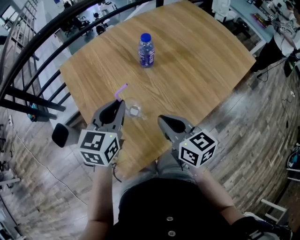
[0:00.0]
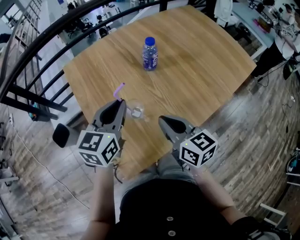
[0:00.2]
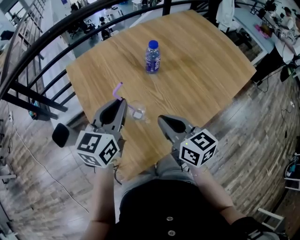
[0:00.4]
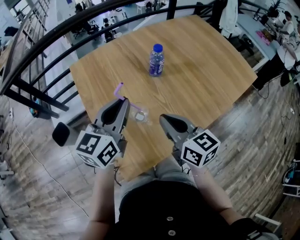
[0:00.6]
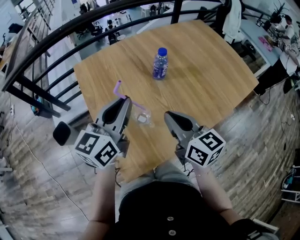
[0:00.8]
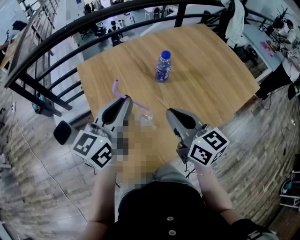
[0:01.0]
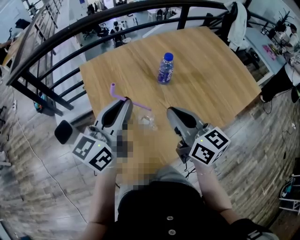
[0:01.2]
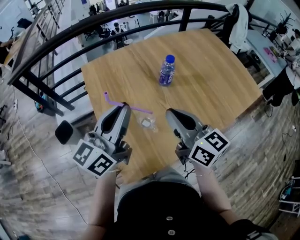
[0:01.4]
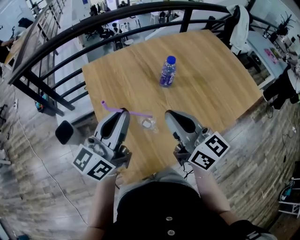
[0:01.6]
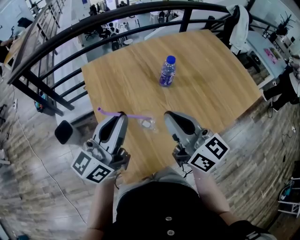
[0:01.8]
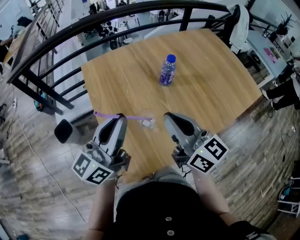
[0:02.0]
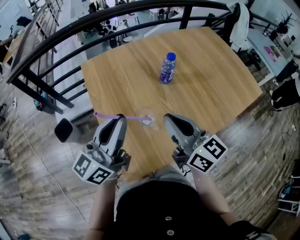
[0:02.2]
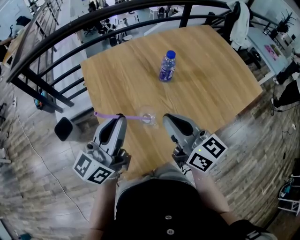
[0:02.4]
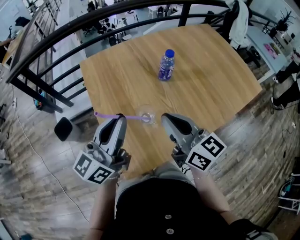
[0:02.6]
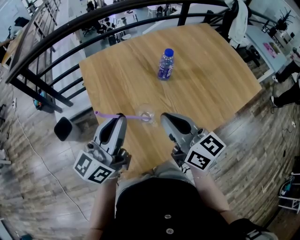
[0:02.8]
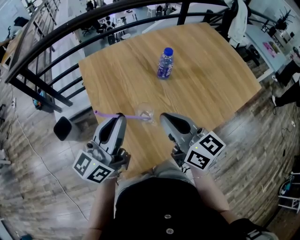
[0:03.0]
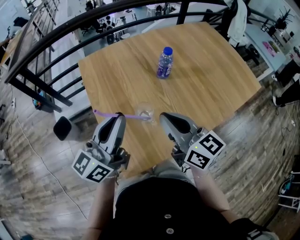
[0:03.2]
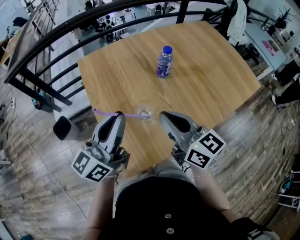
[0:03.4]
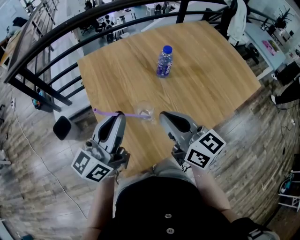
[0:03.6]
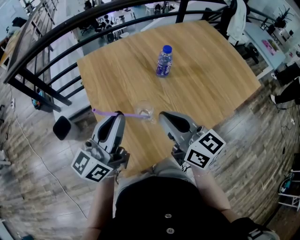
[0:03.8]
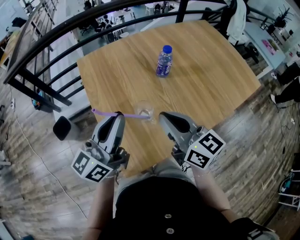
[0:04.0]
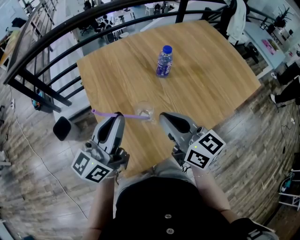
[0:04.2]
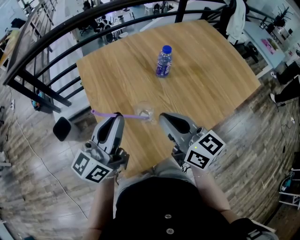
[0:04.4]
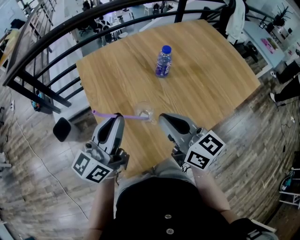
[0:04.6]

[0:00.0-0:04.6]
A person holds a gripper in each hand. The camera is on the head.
0:00.0 to 0:01.6: The left gripper goes some 15 cm upward, to the left and backward, and angles its fingers upward, by roughly 30 degrees; the right gripper moves upward, roughly 10 cm, and swivels approximately 20 degrees.
0:01.6 to 0:03.0: There are only small adjustments of the grippers.
0:03.0 to 0:04.6: Neither gripper changes place.

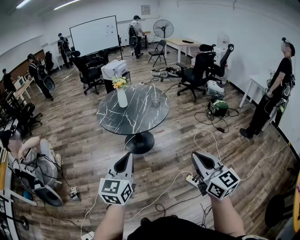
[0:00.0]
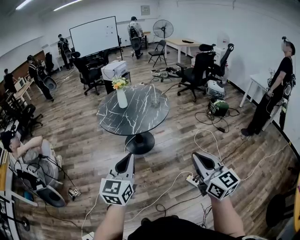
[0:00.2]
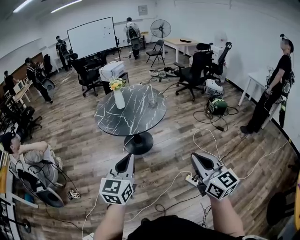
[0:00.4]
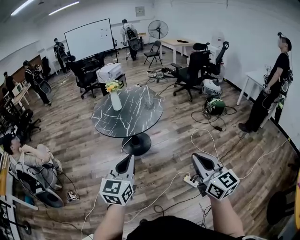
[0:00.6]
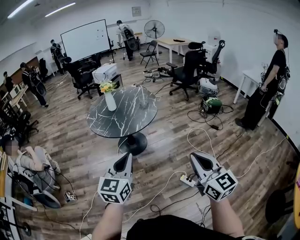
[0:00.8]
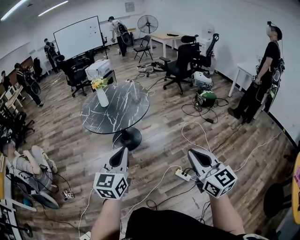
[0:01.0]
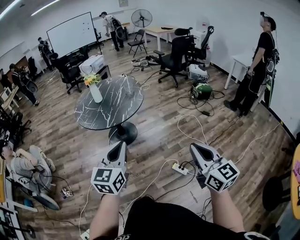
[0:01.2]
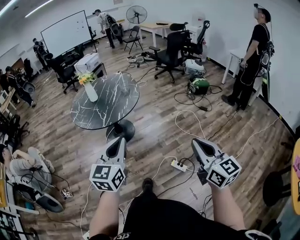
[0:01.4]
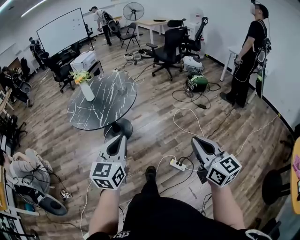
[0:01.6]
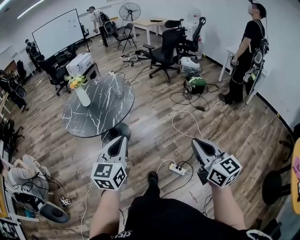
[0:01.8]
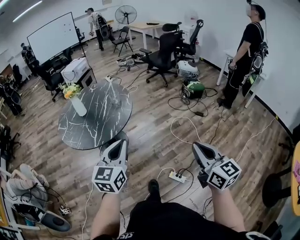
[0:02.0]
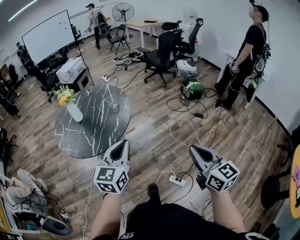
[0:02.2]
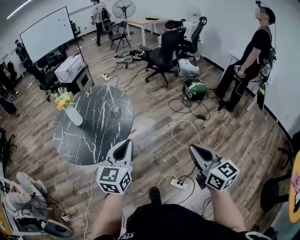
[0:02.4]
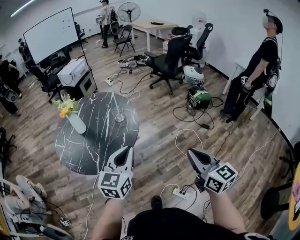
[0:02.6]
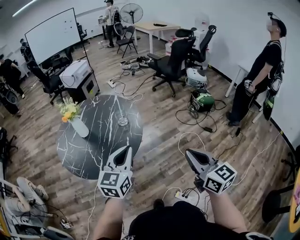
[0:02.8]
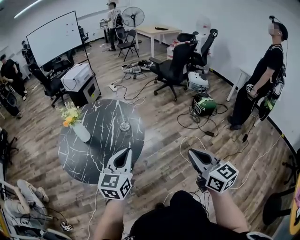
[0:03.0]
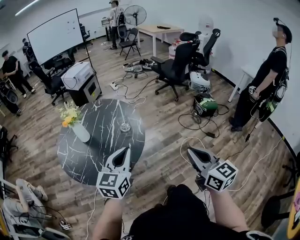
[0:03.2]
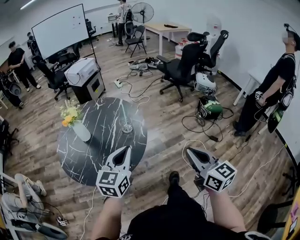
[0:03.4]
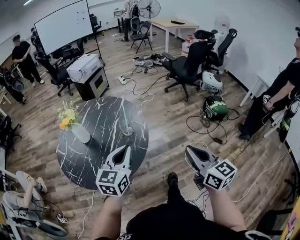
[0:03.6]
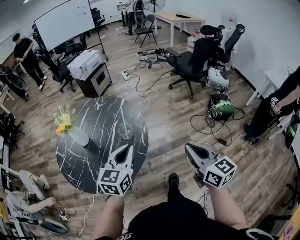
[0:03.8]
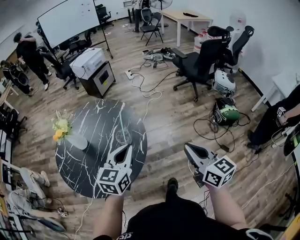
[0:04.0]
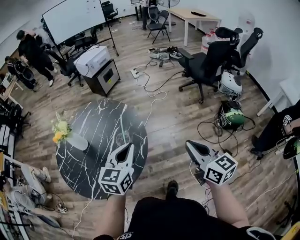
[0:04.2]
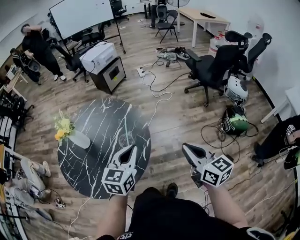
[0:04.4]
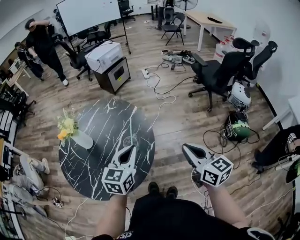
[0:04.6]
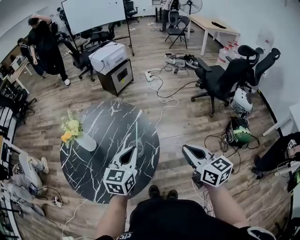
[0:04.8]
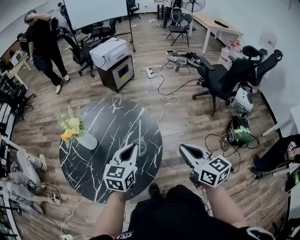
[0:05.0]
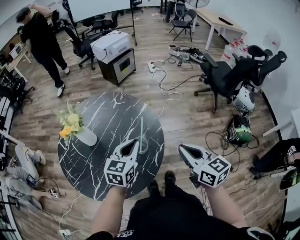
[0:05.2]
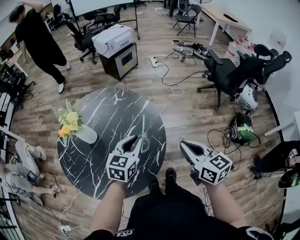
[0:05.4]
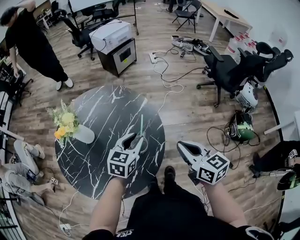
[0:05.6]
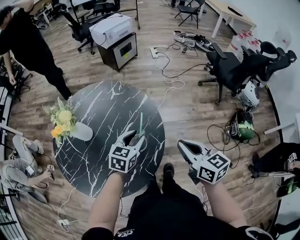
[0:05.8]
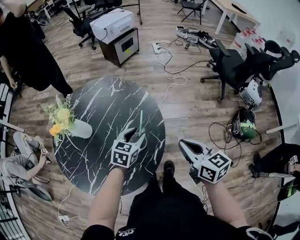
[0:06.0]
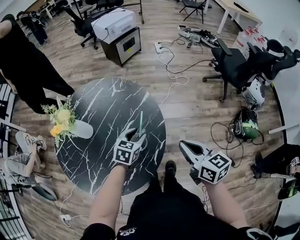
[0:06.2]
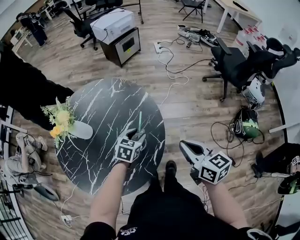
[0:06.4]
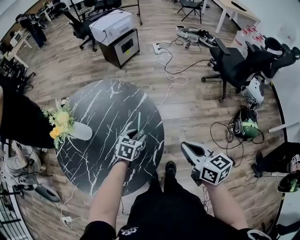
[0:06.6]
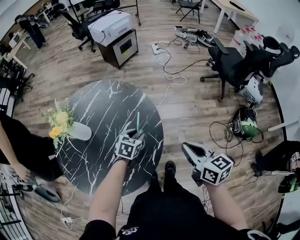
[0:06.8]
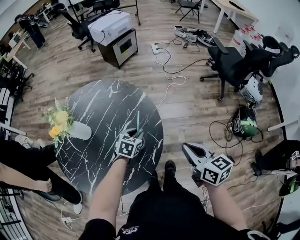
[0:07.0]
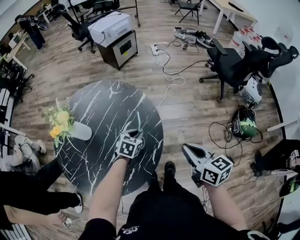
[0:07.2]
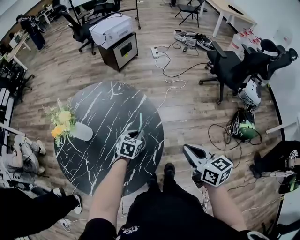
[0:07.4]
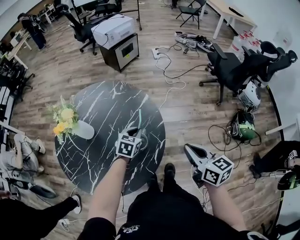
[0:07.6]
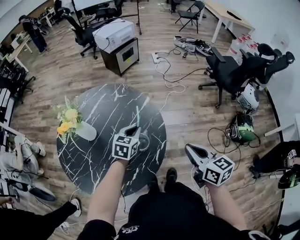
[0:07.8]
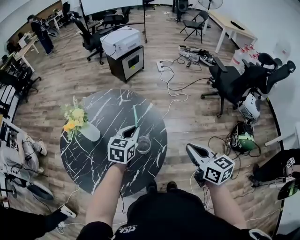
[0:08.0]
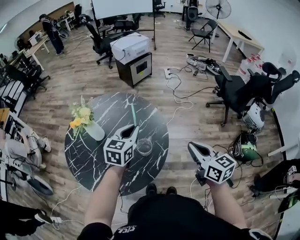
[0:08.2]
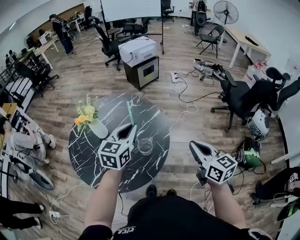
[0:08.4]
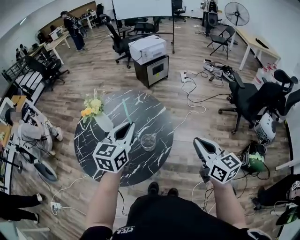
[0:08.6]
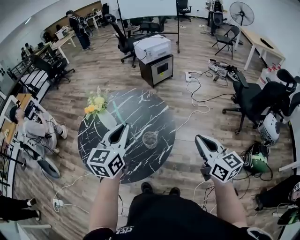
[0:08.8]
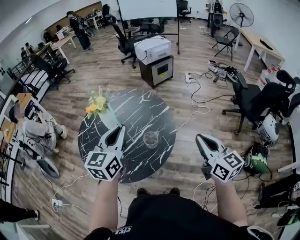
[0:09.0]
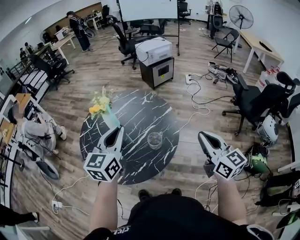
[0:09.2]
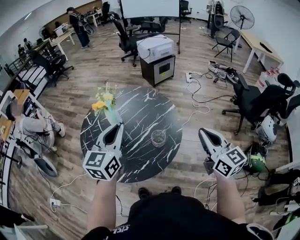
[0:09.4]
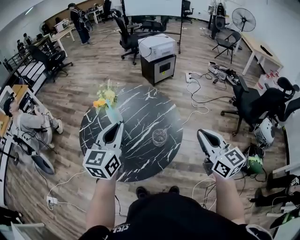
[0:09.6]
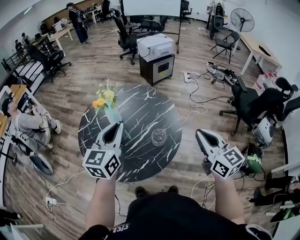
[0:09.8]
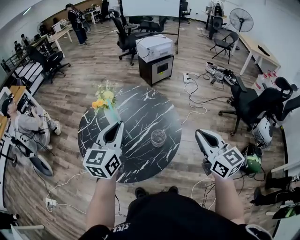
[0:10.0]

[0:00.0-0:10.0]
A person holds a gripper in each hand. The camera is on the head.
0:00.0 to 0:01.4: The two grippers go about 20 cm to the right.
0:01.4 to 0:02.8: The pair of grippers is taken forward, approximately 40 cm.
0:02.8 to 0:04.2: Both grippers travel together forward, roughly 35 cm.
0:04.2 to 0:05.8: The right gripper goes roughly 25 cm forward, to the left and downward; the left gripper travels forward, downward and to the left by about 25 cm, and opens up.
0:05.8 to 0:07.2: The left gripper travels downward by approximately 10 cm, and closes.
0:07.2 to 0:08.6: The left gripper is displaced upward by some 30 cm, and angles its fingers upward, by roughly 40 degrees, while the right gripper goes about 10 cm upward, and turns by about 20 degrees.
0:08.6 to 0:10.0: The left gripper is displaced to the left by some 10 cm. The right gripper goes approximately 10 cm to the left.

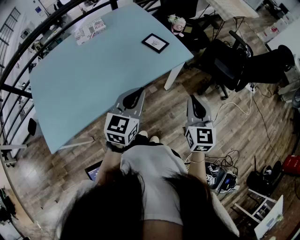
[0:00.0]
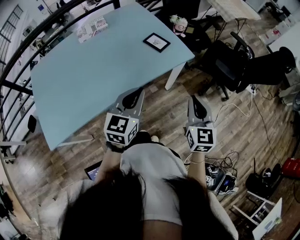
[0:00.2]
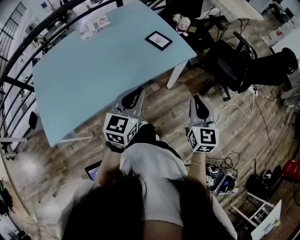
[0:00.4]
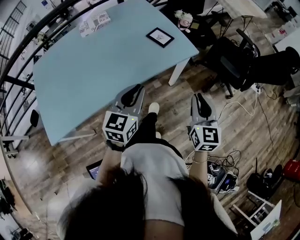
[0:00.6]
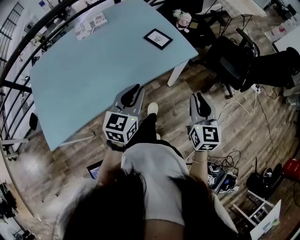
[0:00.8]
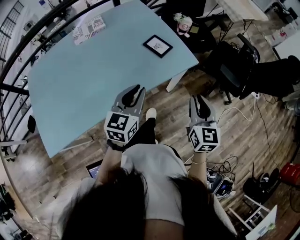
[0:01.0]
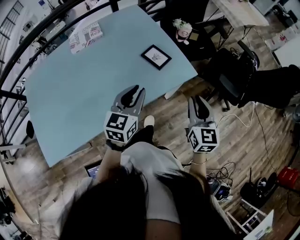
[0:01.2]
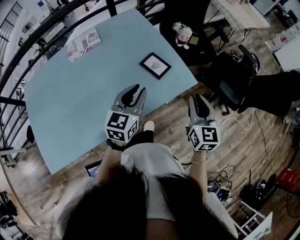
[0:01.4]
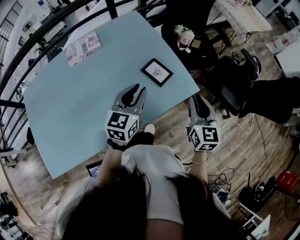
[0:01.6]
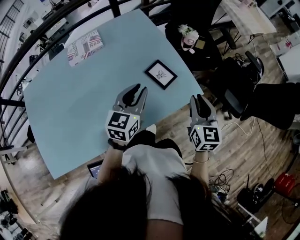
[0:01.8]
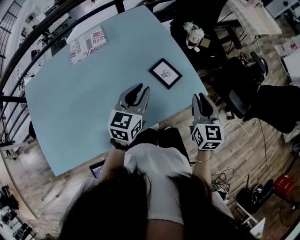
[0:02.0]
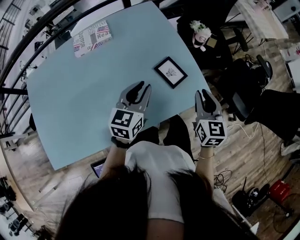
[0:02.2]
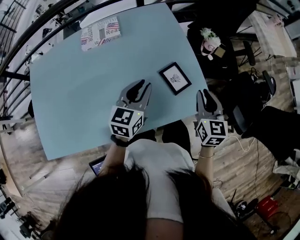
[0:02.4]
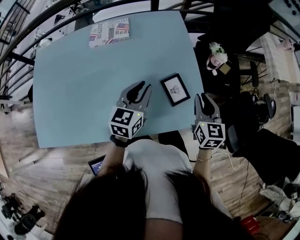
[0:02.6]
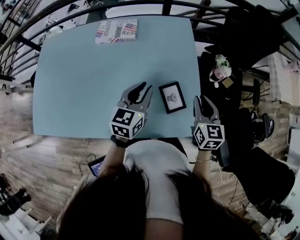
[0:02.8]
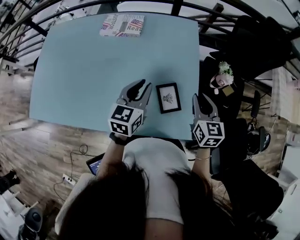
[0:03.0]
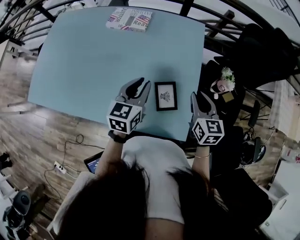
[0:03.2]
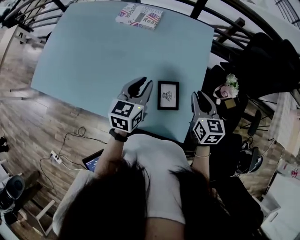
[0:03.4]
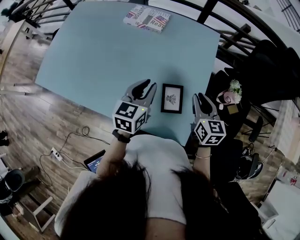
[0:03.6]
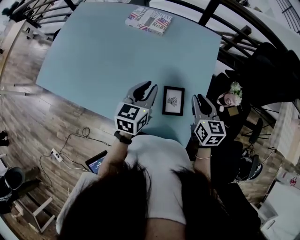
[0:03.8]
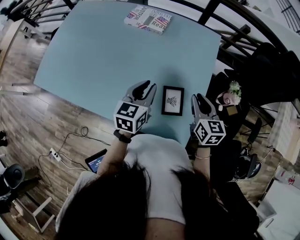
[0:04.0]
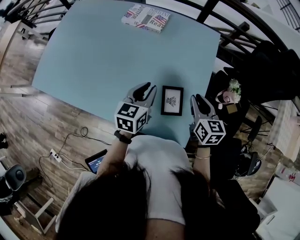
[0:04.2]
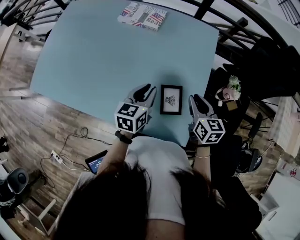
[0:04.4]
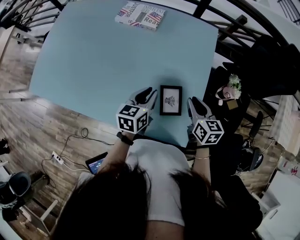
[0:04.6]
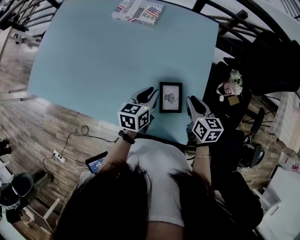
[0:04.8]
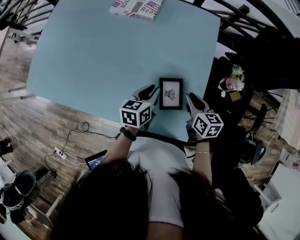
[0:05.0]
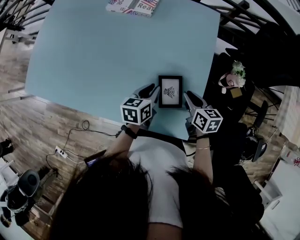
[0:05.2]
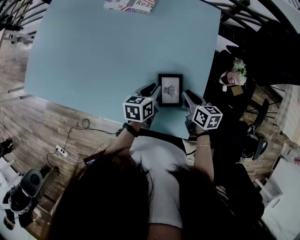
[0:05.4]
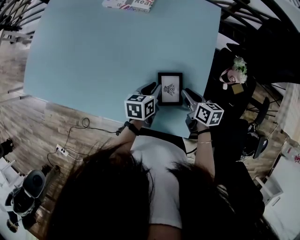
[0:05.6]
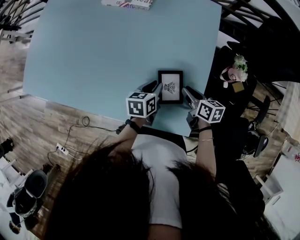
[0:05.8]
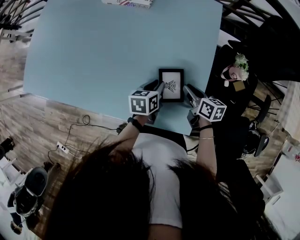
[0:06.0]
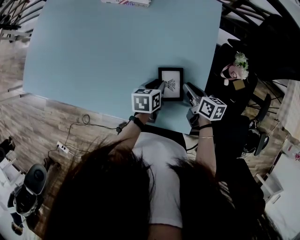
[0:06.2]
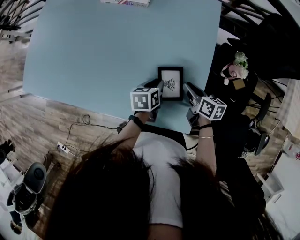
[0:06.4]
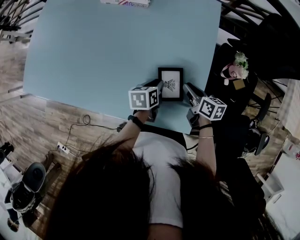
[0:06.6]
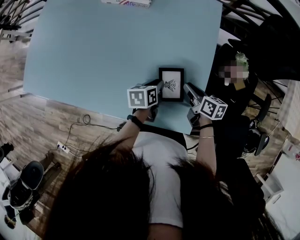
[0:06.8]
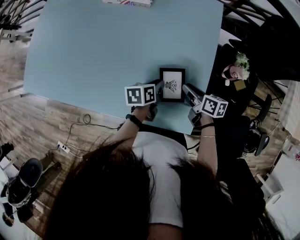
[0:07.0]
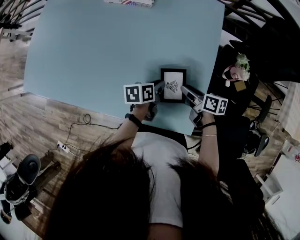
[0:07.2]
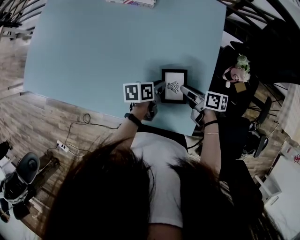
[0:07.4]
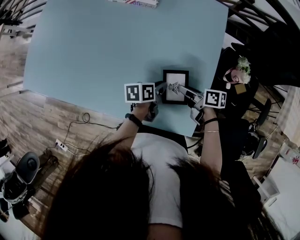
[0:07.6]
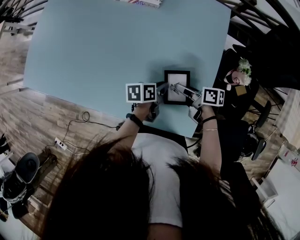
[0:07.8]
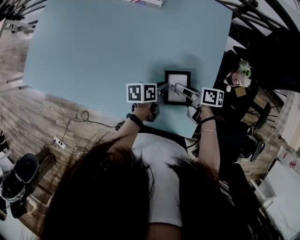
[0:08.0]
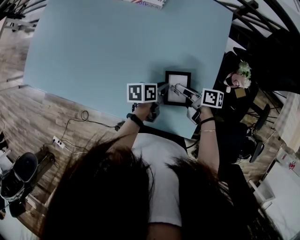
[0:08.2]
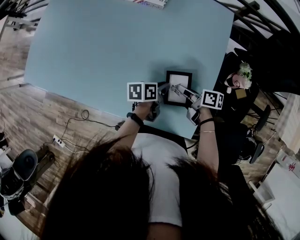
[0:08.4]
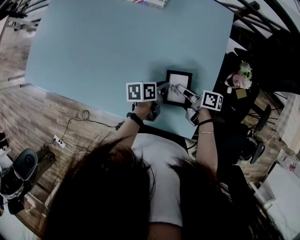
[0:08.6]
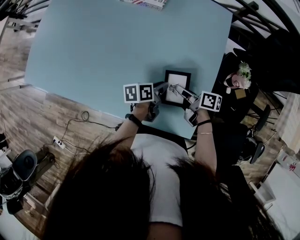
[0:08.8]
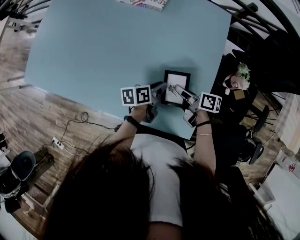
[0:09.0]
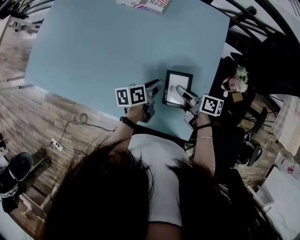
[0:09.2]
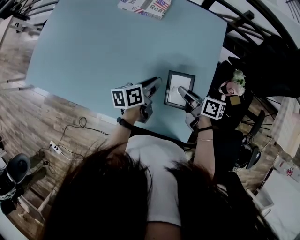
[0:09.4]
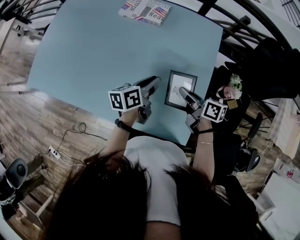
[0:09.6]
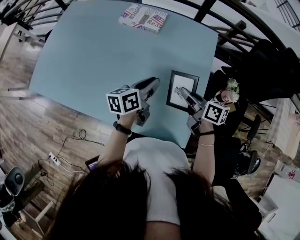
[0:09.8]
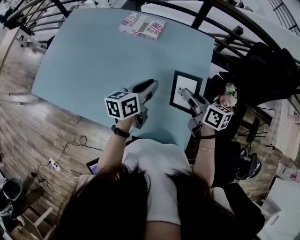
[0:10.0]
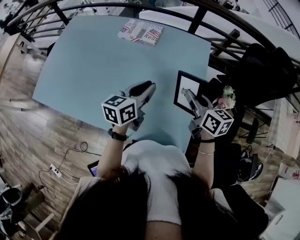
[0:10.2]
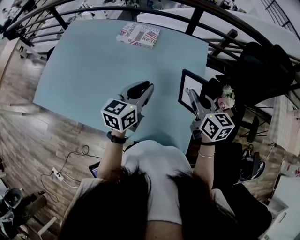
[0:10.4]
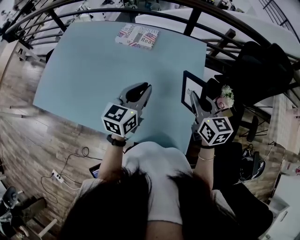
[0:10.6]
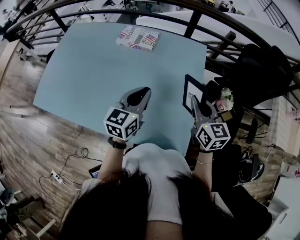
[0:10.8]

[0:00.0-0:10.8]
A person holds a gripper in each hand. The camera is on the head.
0:00.0 to 0:01.6: Both grippers travel together forward, approximately 25 cm.
0:01.6 to 0:03.0: The right gripper moves about 25 cm, and changes its angle by some 40 degrees; the left gripper moves roughly 10 cm, and turns by some 30 degrees.
0:03.0 to 0:04.6: The grippers both shift downward by some 10 cm. The right gripper swivels some 20 degrees. The left gripper swivels roughly 20 degrees.
0:04.6 to 0:06.2: Both grippers move downward, about 10 cm. The right gripper turns by some 30 degrees; the left gripper turns by about 20 degrees.
0:06.2 to 0:07.8: The left gripper turns by approximately 20 degrees. The right gripper heads to the left, covering roughly 5 cm, rotates roughly 30 degrees, and opens.
0:07.8 to 0:09.2: The left gripper changes place by approximately 5 cm. The right gripper closes.
0:09.2 to 0:10.8: The two grippers go about 20 cm upward. The left gripper twists approximately 50 degrees clockwise, seen from behind. The right gripper rotates around the line of its fingers by about 50 degrees, counterclockwise from behind.
